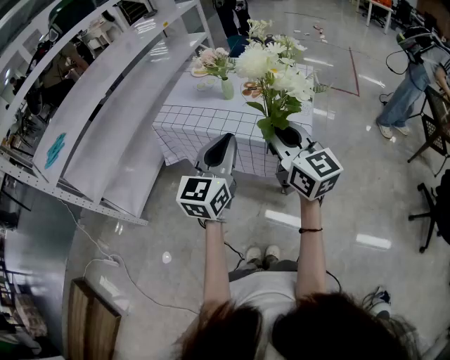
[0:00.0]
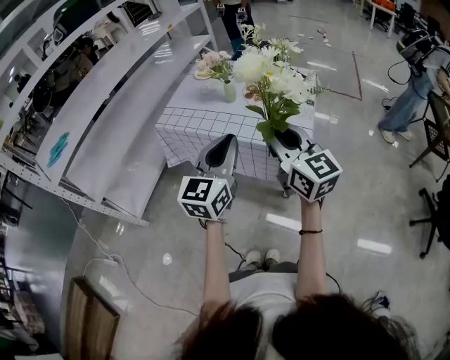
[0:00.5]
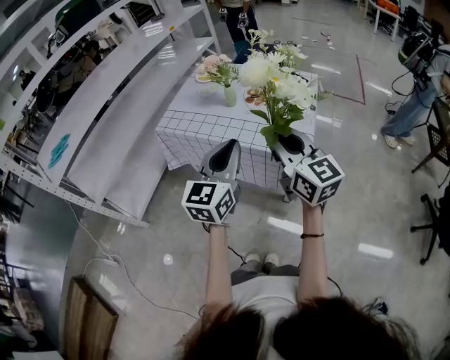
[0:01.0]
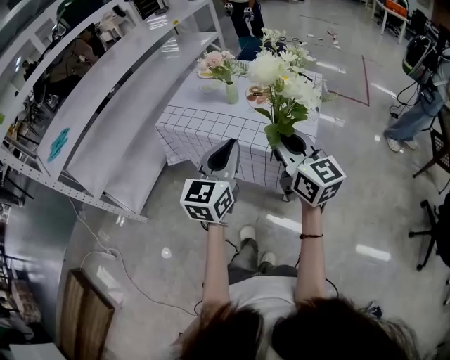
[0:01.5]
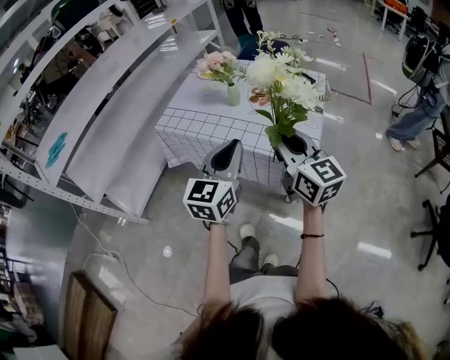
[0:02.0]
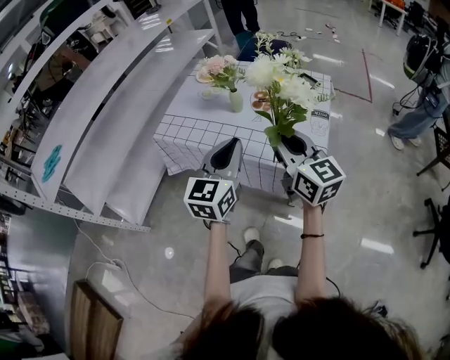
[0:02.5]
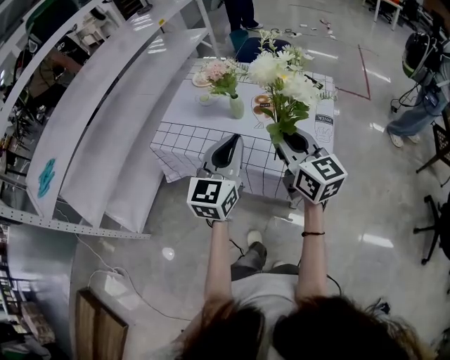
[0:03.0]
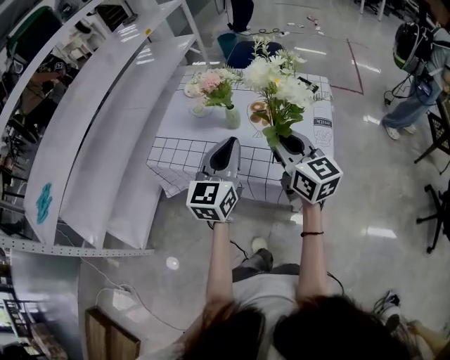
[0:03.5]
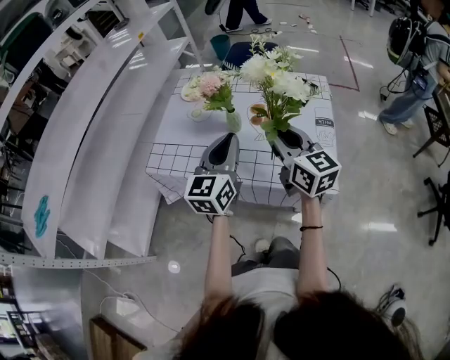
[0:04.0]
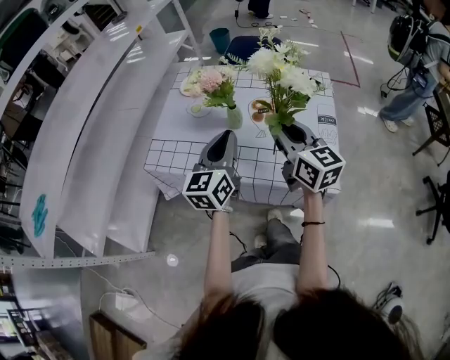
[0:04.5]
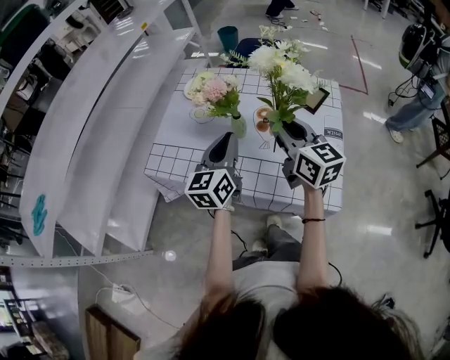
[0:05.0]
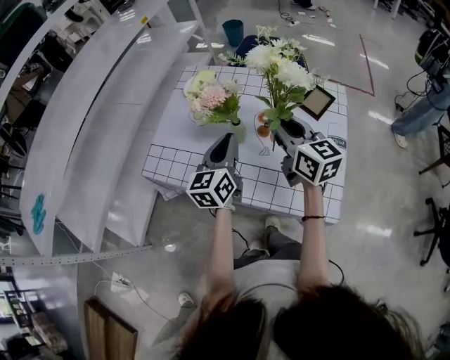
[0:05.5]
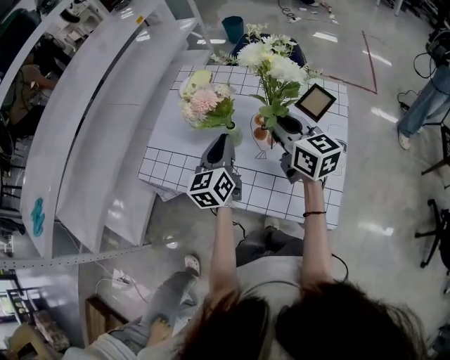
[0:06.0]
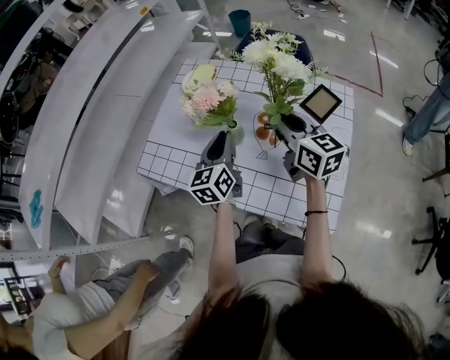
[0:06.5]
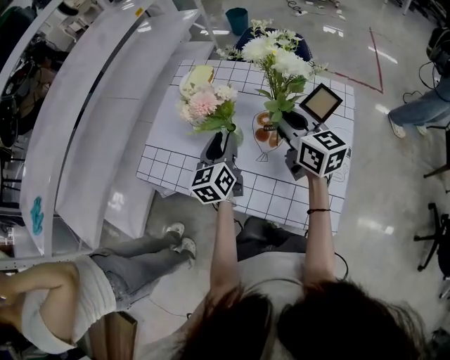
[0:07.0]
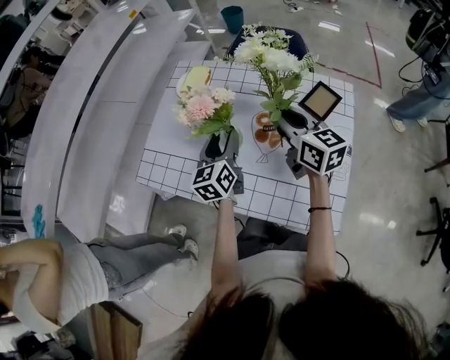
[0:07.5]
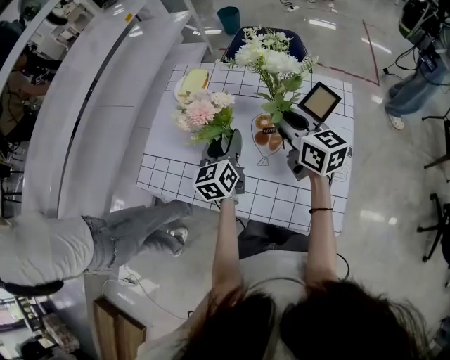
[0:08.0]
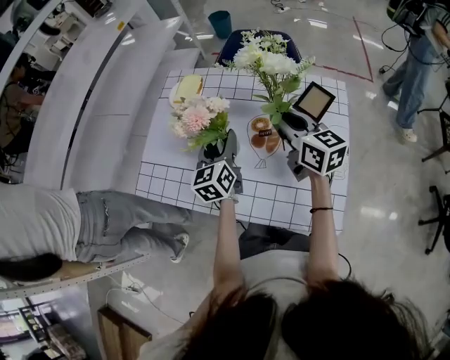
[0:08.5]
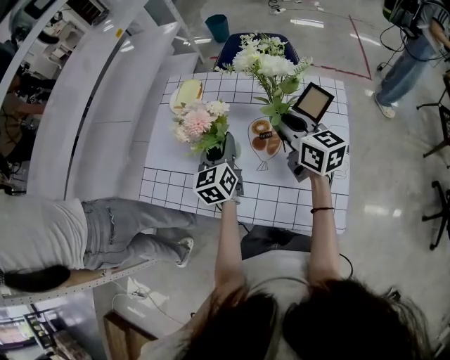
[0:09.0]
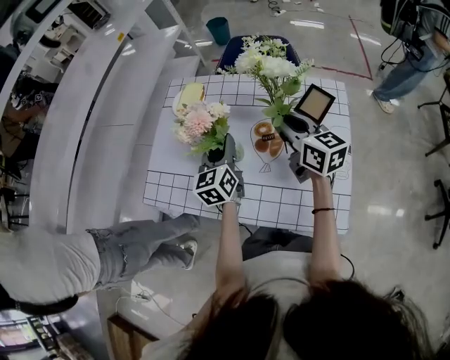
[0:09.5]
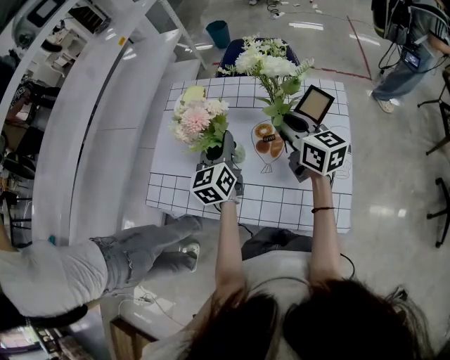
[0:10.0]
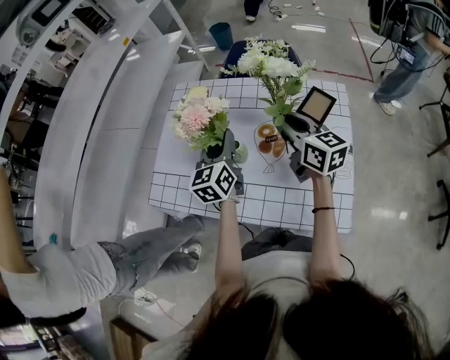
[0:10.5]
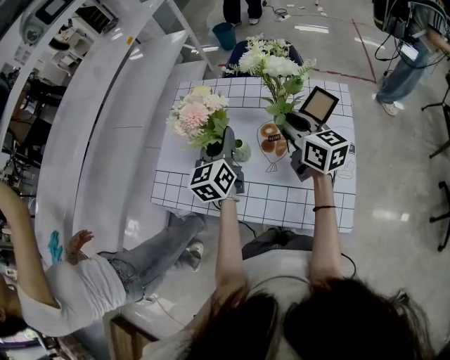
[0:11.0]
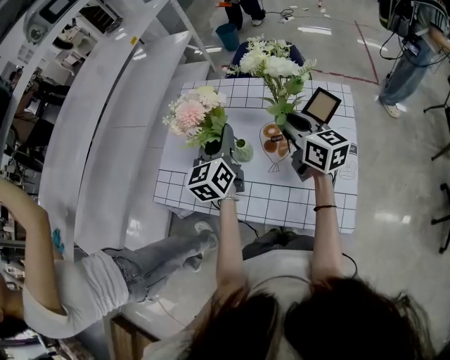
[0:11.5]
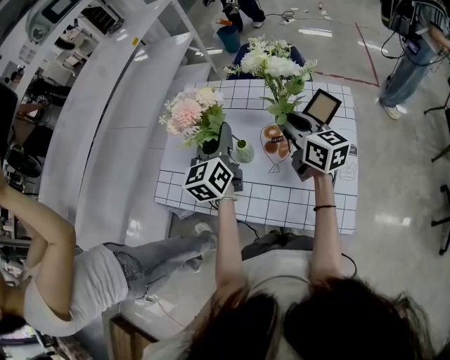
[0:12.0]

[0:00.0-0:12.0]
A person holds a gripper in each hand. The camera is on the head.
0:00.0 to 0:02.0: The two grippers go about 5 cm forward.
0:02.0 to 0:04.0: The grippers both shift forward by about 20 cm.
0:04.0 to 0:06.0: The left gripper goes about 15 cm forward and downward. The right gripper heads forward, covering about 15 cm.
0:06.0 to 0:08.0: The right gripper moves approximately 5 cm. Meanwhile the left gripper shifts approximately 5 cm forward, and opens its fingers.
0:08.0 to 0:10.0: The left gripper closes its fingers.
0:10.0 to 0:12.0: The left gripper moves upward, some 5 cm.

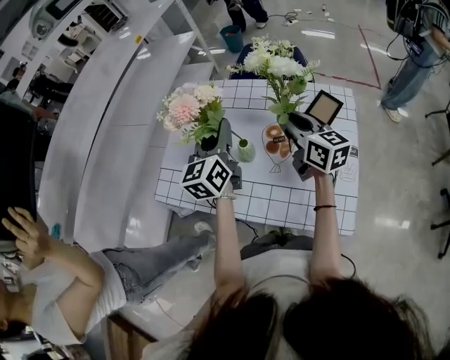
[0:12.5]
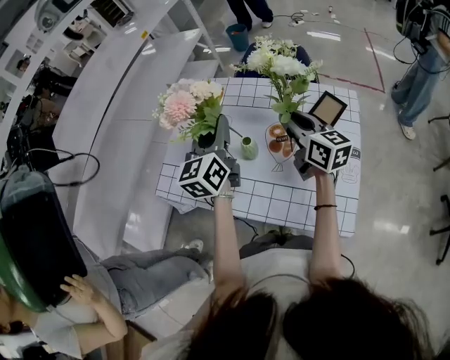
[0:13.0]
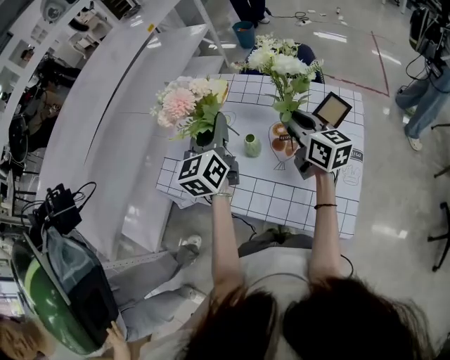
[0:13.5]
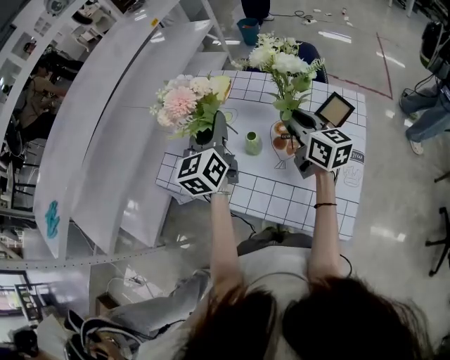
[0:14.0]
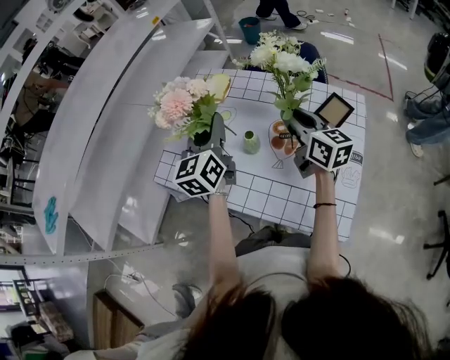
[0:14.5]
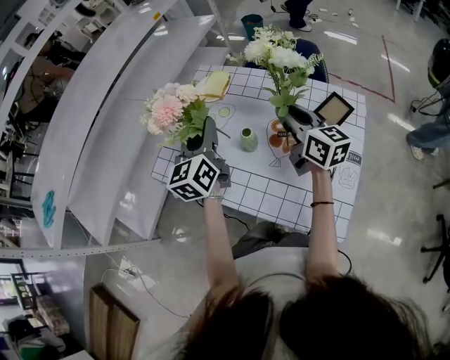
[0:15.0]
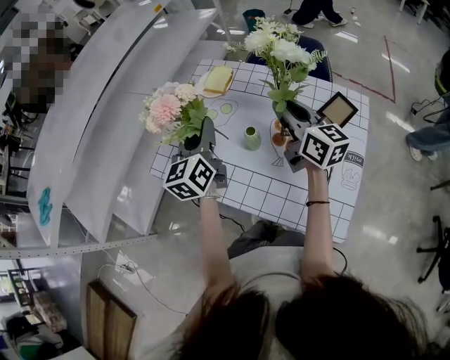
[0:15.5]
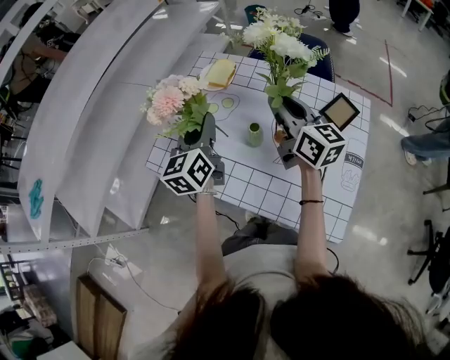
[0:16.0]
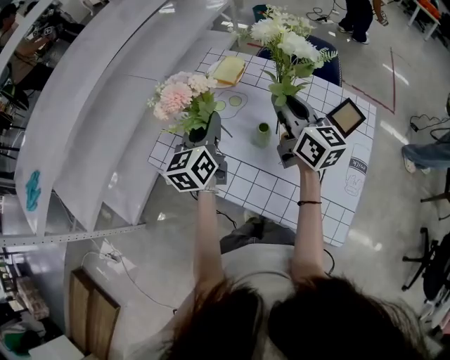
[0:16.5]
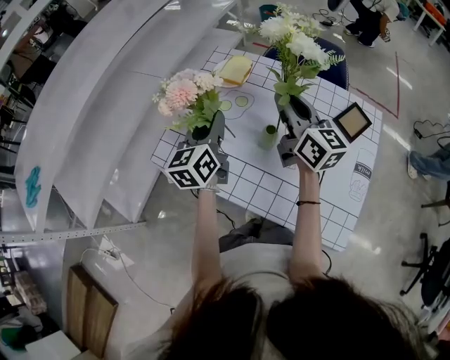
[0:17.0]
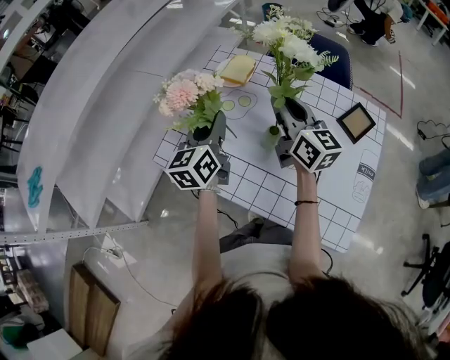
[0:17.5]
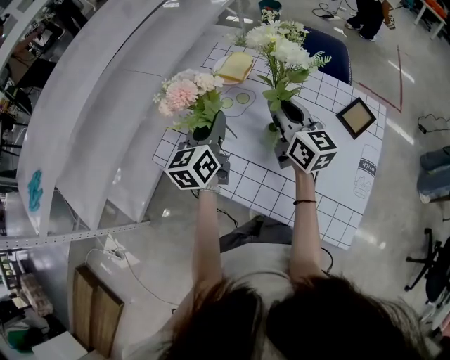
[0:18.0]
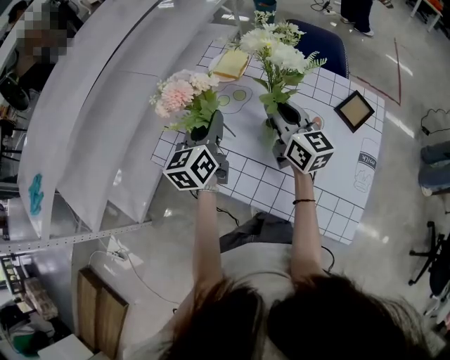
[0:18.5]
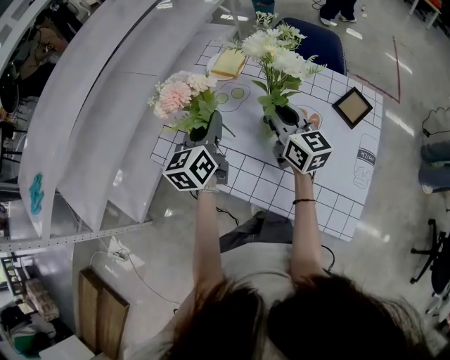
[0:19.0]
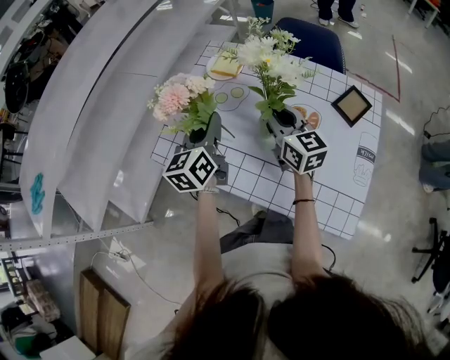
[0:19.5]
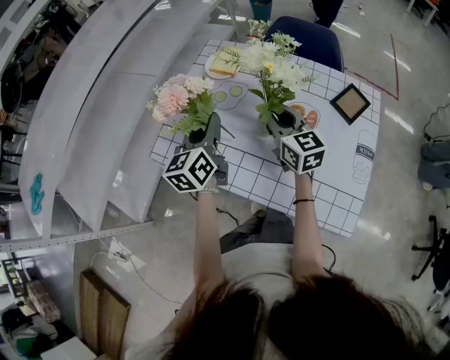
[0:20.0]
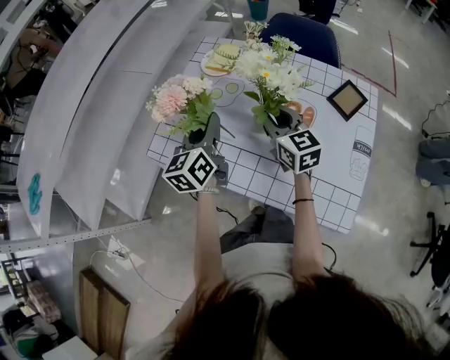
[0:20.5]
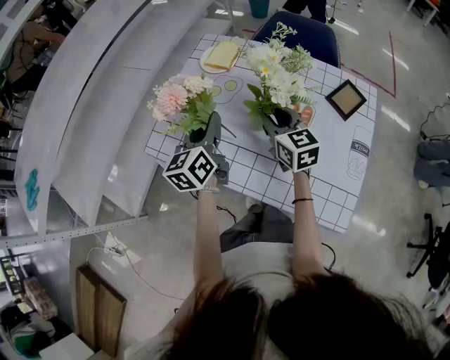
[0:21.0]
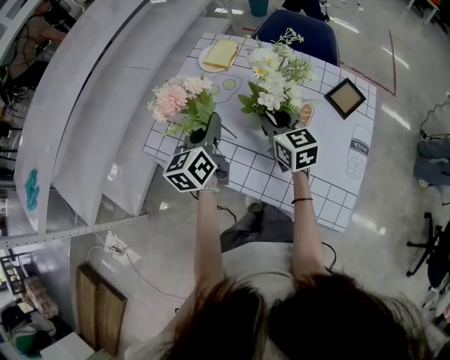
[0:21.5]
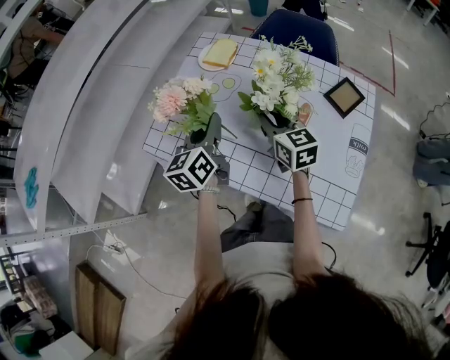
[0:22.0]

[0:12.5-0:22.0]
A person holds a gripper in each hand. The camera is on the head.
0:12.5 to 0:14.5: The grippers stay close to where they were, moving slightly.
0:14.5 to 0:16.5: The left gripper goes roughly 10 cm to the left and downward. Meanwhile the right gripper moves to the left, approximately 10 cm.
0:16.5 to 0:18.0: The right gripper shifts by roughly 5 cm.
0:18.0 to 0:20.0: The right gripper is displaced downward by about 5 cm.
0:20.0 to 0:22.0: The grippers move only a little.

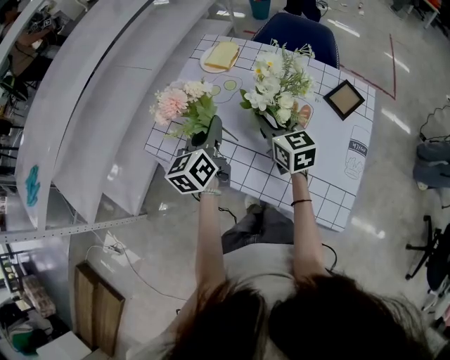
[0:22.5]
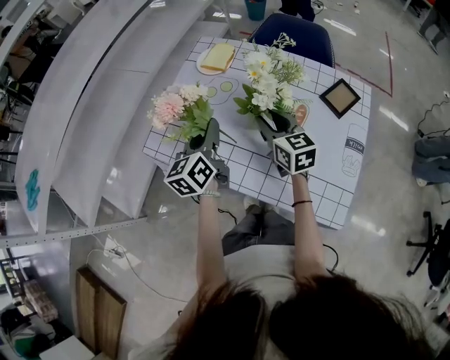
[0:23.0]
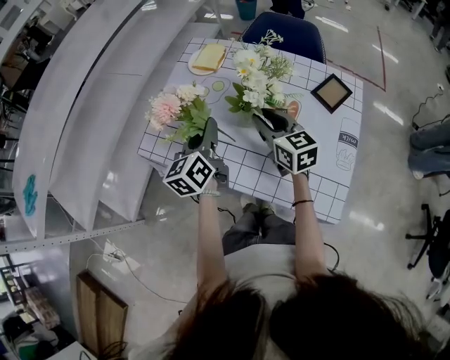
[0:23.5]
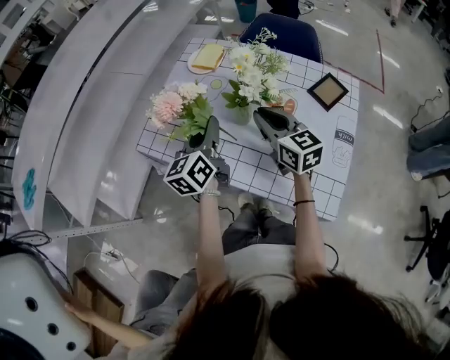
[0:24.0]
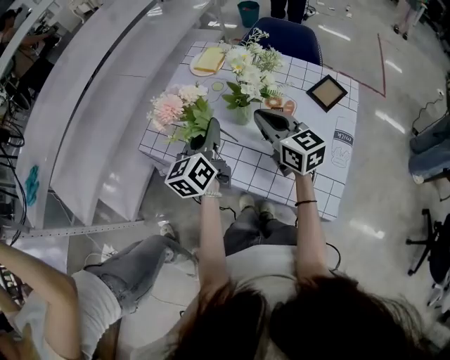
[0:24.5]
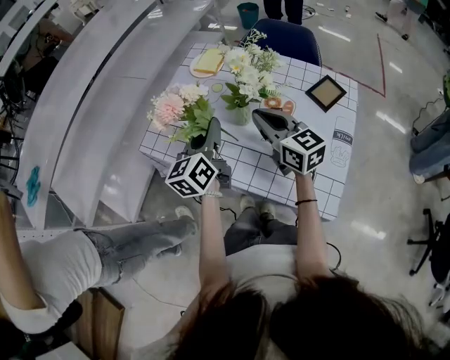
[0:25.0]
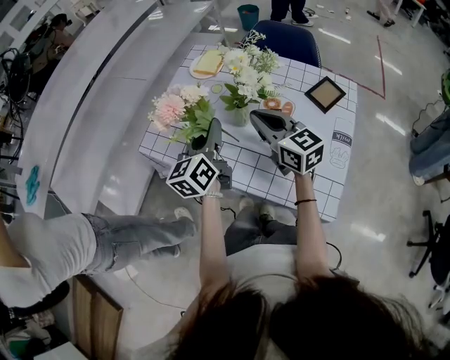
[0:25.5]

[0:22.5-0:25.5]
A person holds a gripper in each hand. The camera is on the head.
0:22.5 to 0:24.0: The right gripper changes place by approximately 5 cm.
0:24.0 to 0:25.5: The grippers stay close to where they were, moving slightly.

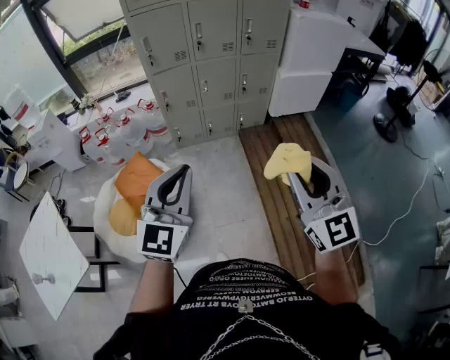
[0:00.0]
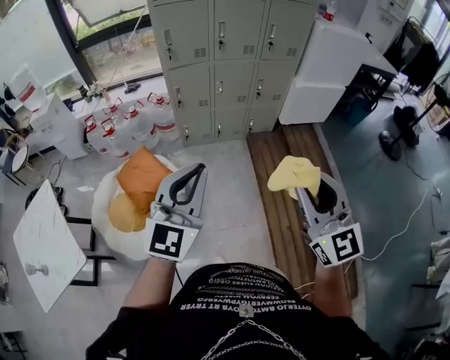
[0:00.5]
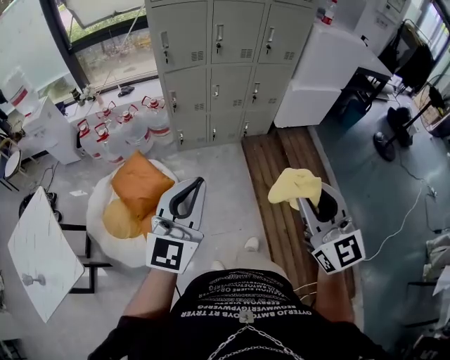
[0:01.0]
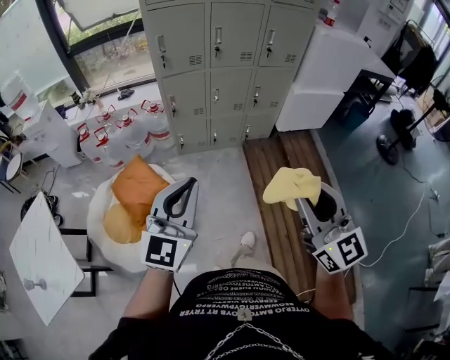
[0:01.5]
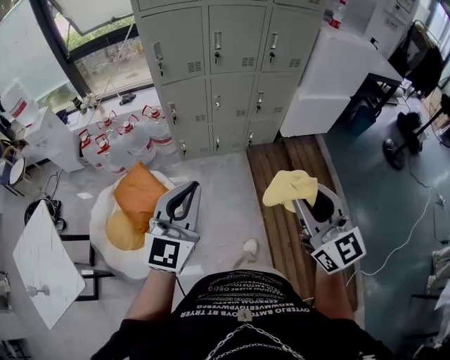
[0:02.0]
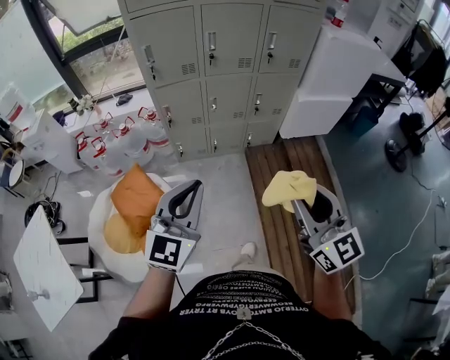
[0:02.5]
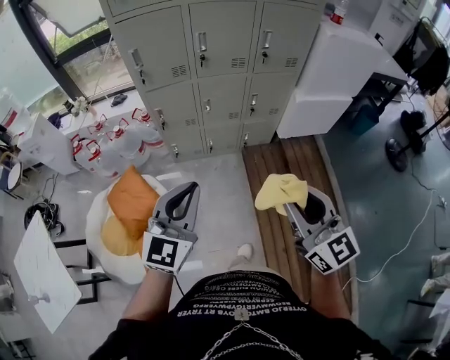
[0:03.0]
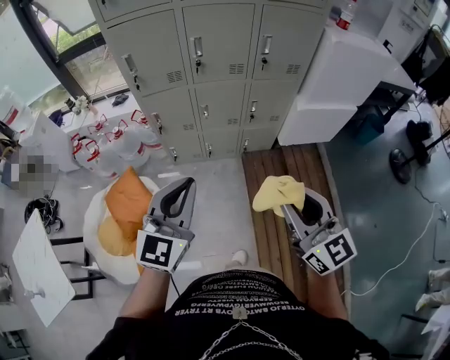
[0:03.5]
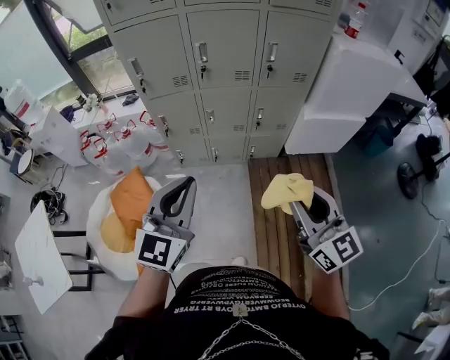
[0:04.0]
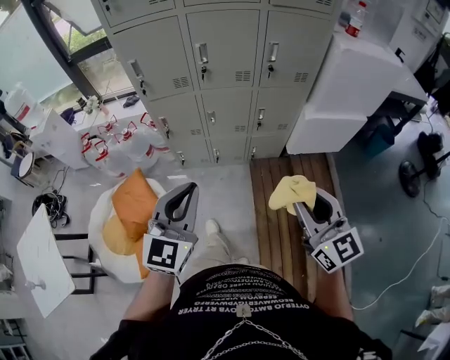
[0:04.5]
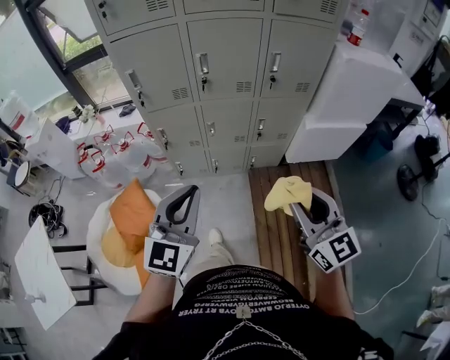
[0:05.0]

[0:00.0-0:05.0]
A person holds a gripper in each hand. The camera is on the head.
0:00.0 to 0:02.5: Both grippers travel together forward, approximately 20 cm.
0:02.5 to 0:05.0: Both grippers travel together forward and to the right, approximately 20 cm.
